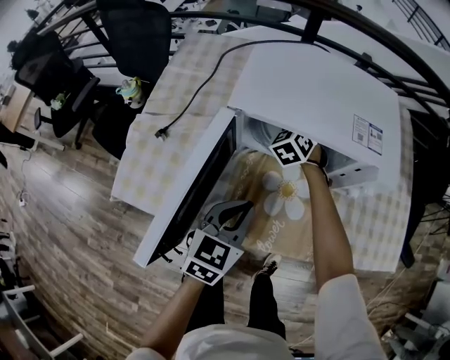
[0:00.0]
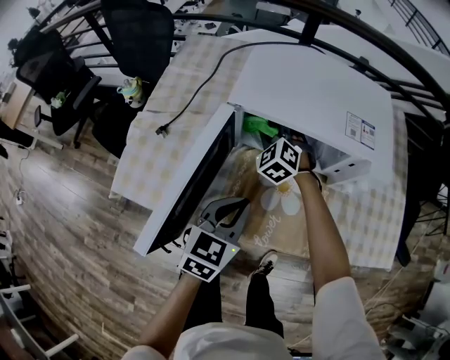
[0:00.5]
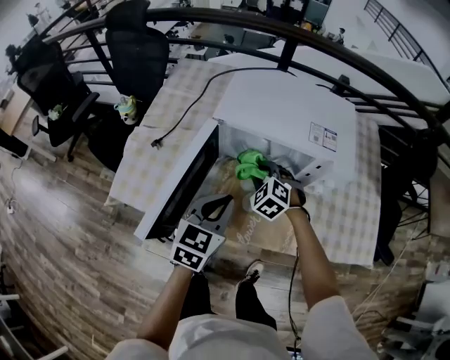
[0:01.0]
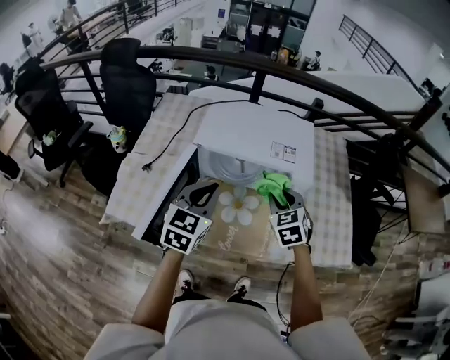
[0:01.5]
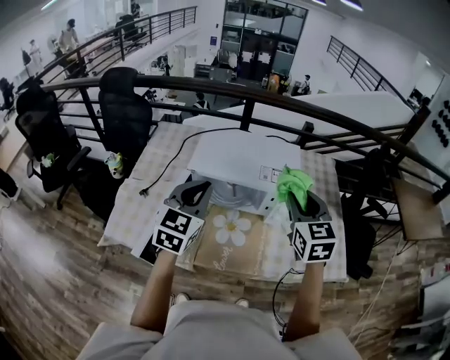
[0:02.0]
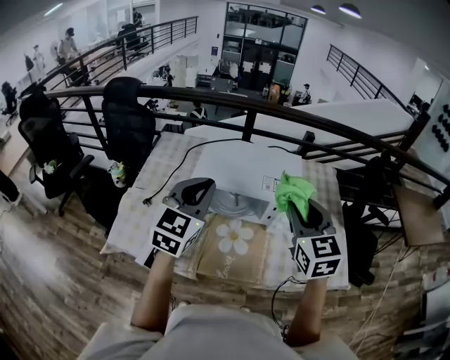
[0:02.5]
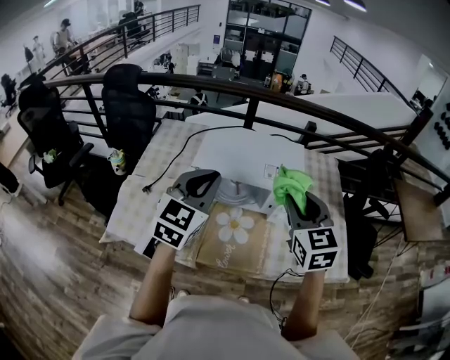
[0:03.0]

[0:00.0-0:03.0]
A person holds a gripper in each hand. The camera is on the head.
0:00.0 to 0:01.5: The right gripper shifts about 35 cm backward, upward and to the right; the left gripper is displaced upward by about 20 cm.
0:01.5 to 0:03.0: The grippers both shift upward by roughly 15 cm. The right gripper rotates about 20 degrees.

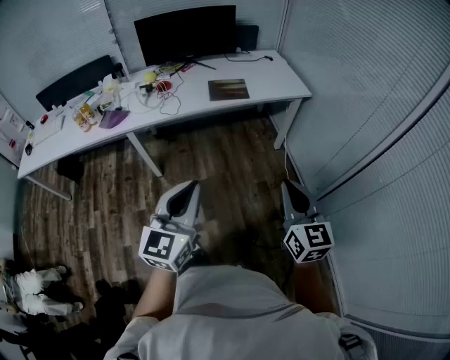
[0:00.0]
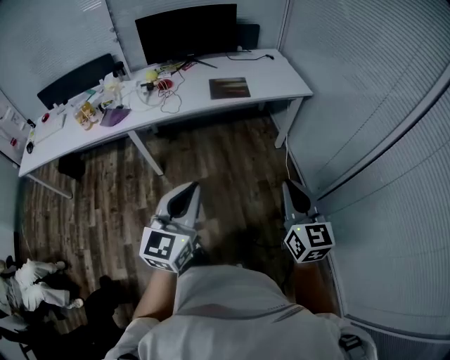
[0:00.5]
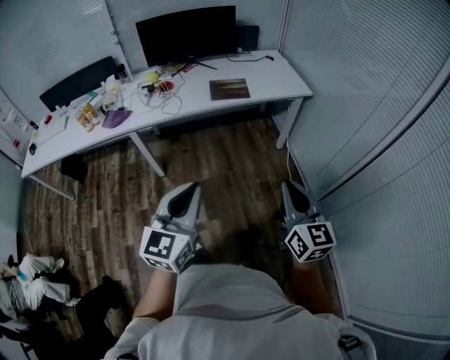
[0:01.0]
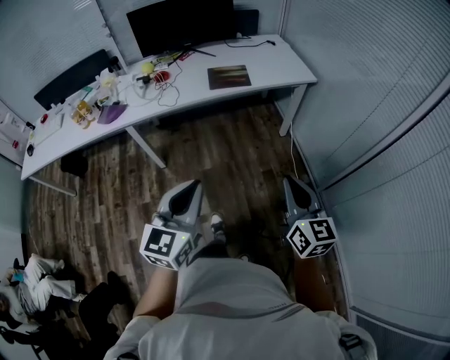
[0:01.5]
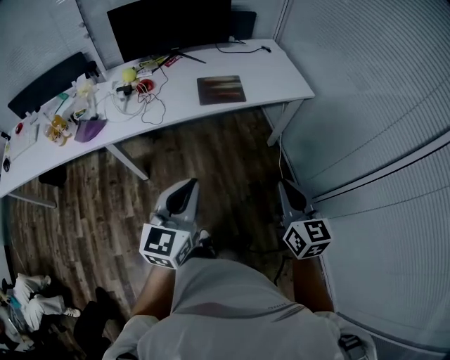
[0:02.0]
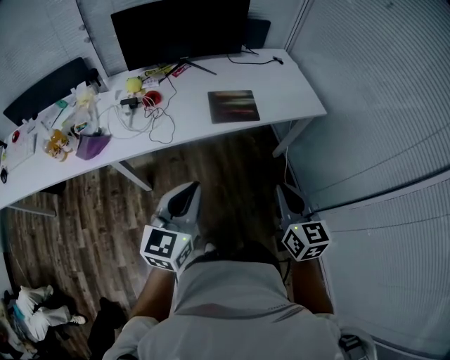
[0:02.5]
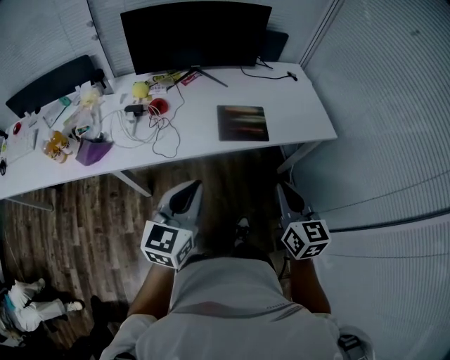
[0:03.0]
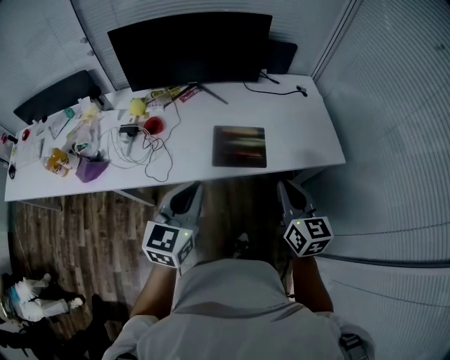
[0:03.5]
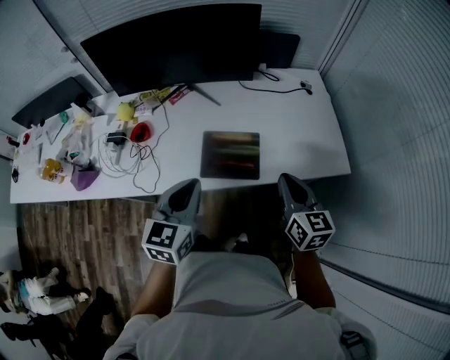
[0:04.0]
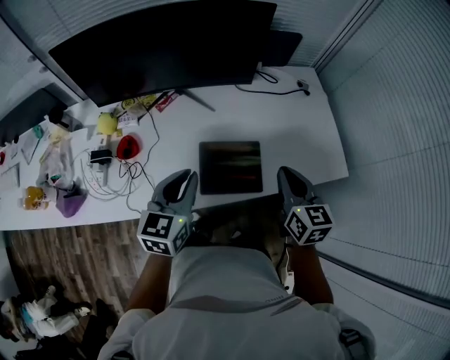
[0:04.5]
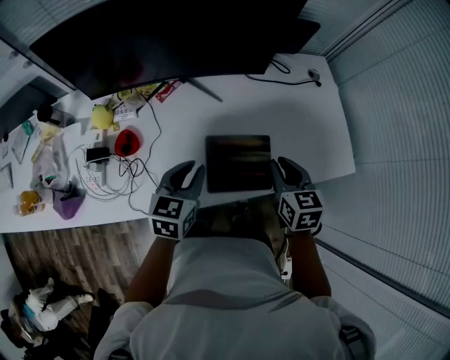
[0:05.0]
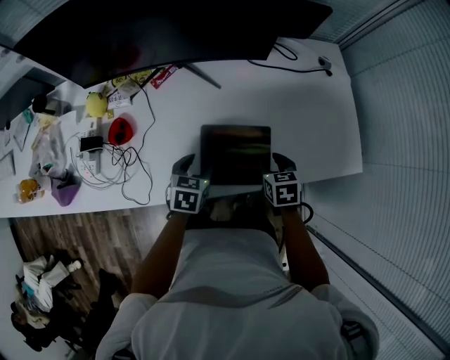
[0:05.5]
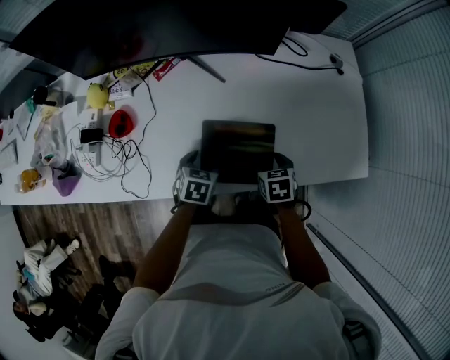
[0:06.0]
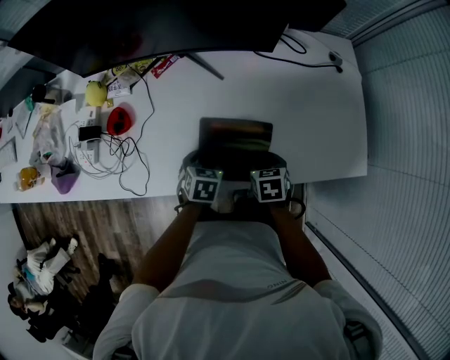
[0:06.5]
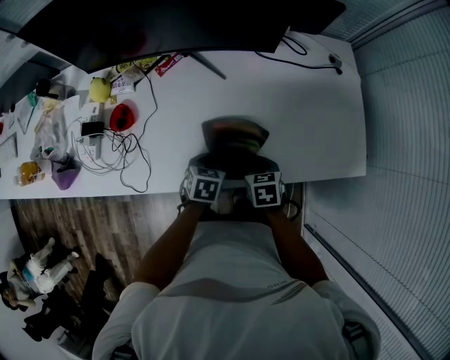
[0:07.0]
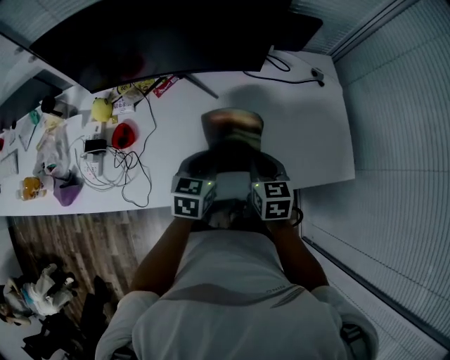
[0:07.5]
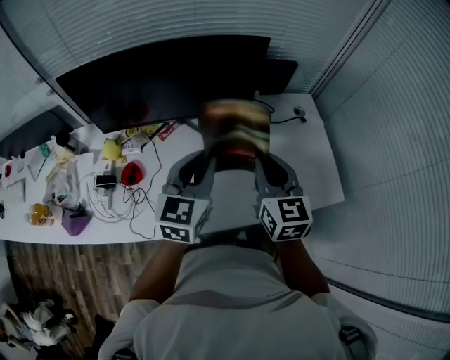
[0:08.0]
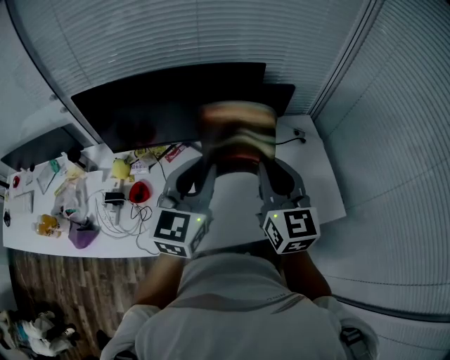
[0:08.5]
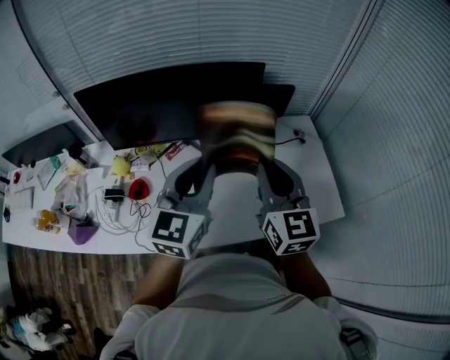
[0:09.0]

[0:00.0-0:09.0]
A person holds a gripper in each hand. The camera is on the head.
0:00.0 to 0:02.0: The two grippers go some 20 cm forward.
0:02.0 to 0:04.5: Both grippers are carried forward, some 60 cm.
0:04.5 to 0:07.0: Both grippers travel together downward, about 25 cm. The left gripper tips its fingers downward by about 40 degrees, and opens, then closes again. Meanwhile the right gripper angles its fingers downward, by approximately 40 degrees, and opens, then closes once more.
0:07.0 to 0:09.0: The two grippers go approximately 40 cm upward. The left gripper tips its fingers upward by about 60 degrees, while the right gripper points its fingers approximately 60 degrees further upward.

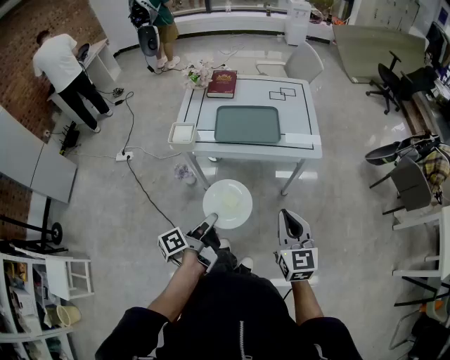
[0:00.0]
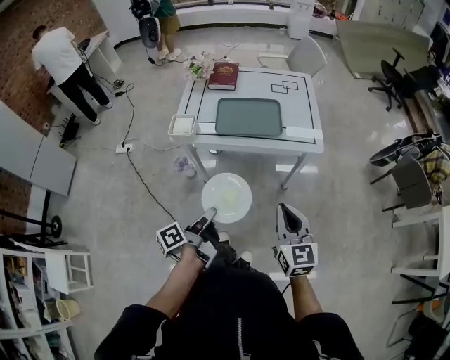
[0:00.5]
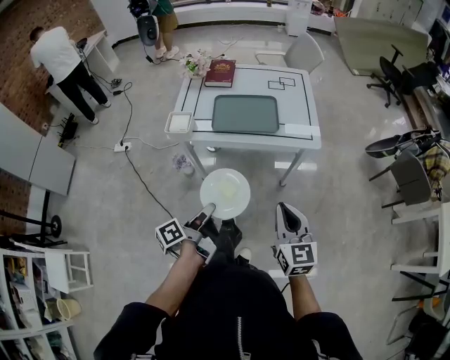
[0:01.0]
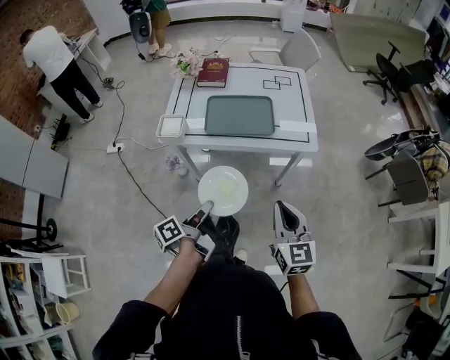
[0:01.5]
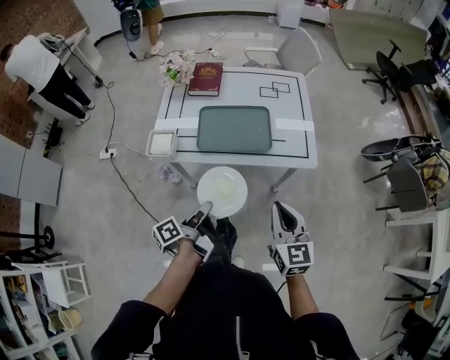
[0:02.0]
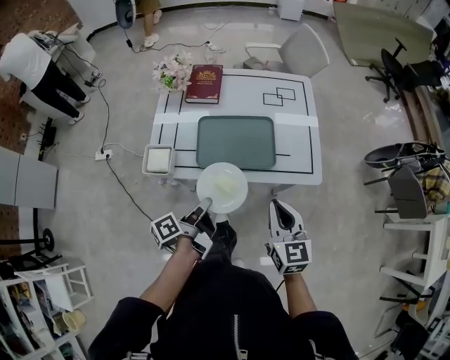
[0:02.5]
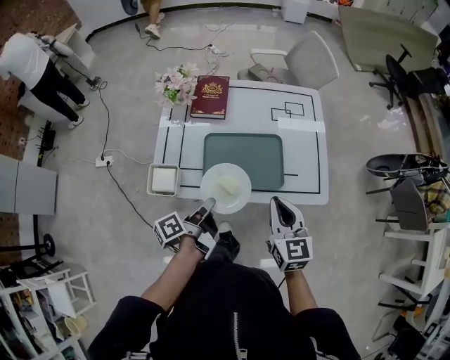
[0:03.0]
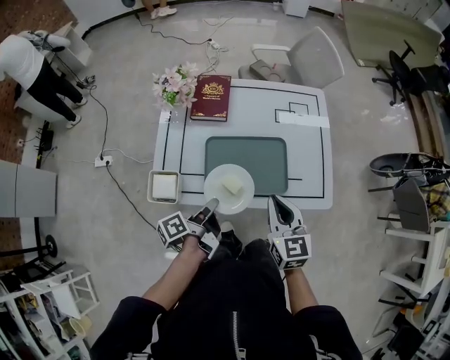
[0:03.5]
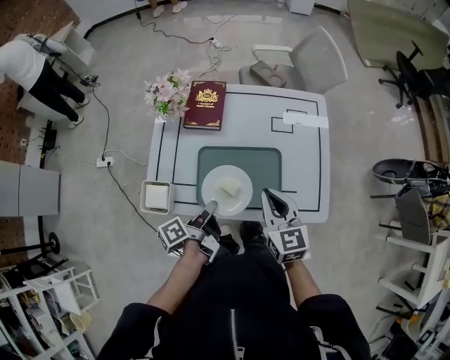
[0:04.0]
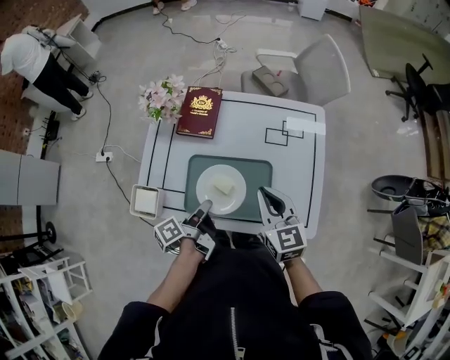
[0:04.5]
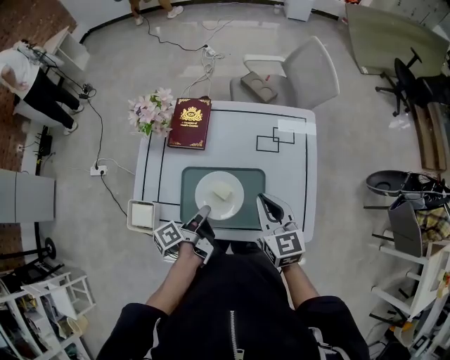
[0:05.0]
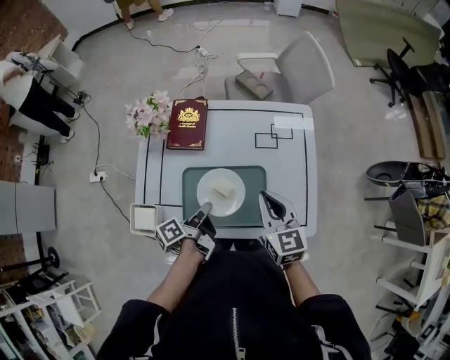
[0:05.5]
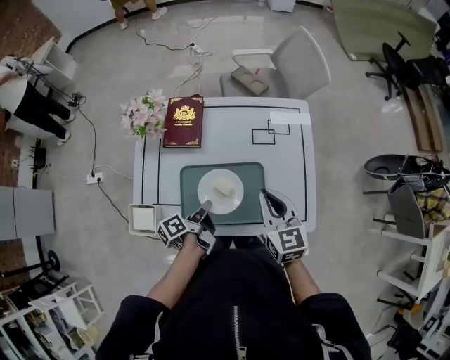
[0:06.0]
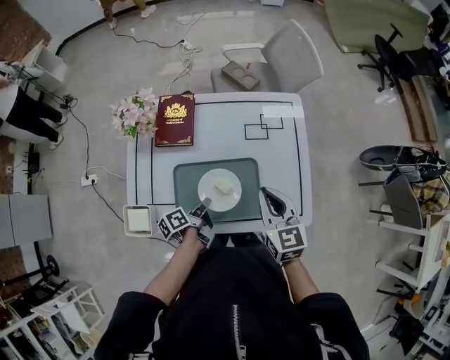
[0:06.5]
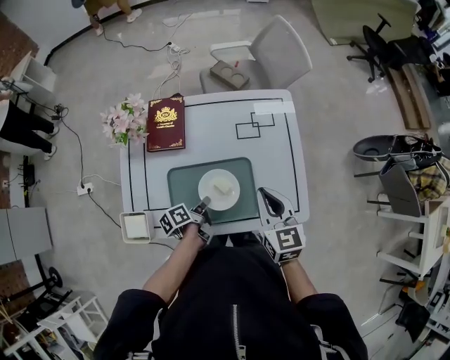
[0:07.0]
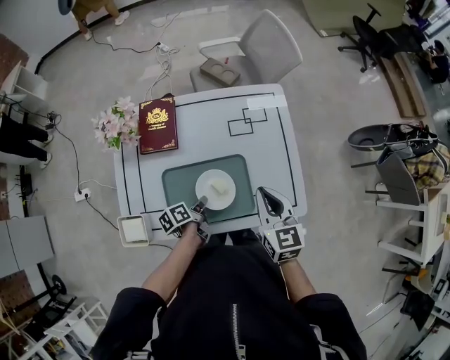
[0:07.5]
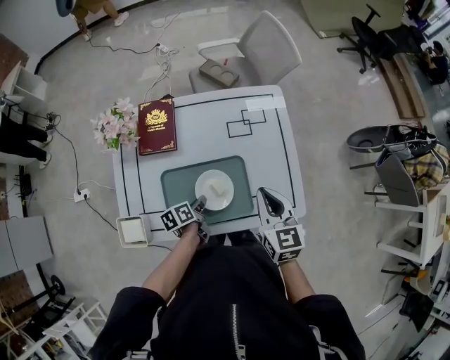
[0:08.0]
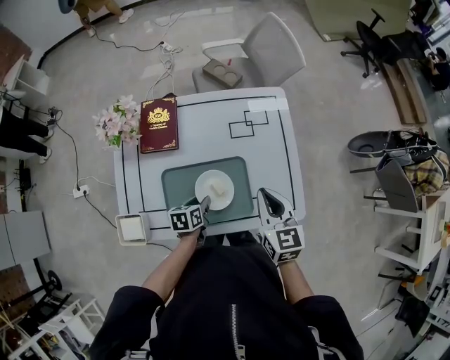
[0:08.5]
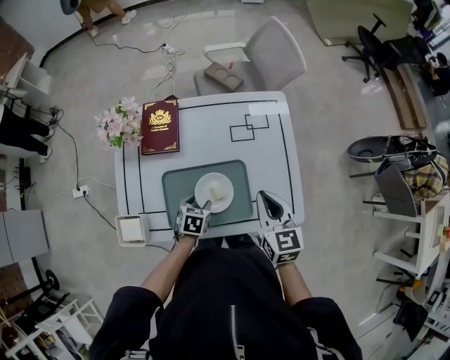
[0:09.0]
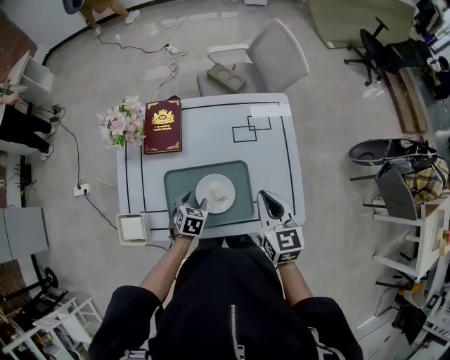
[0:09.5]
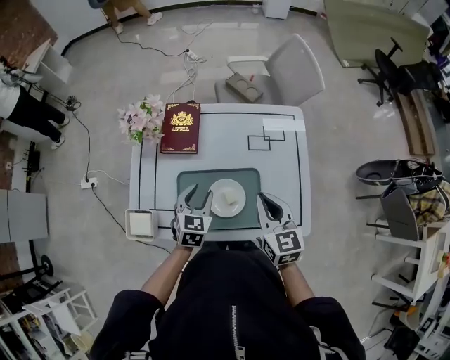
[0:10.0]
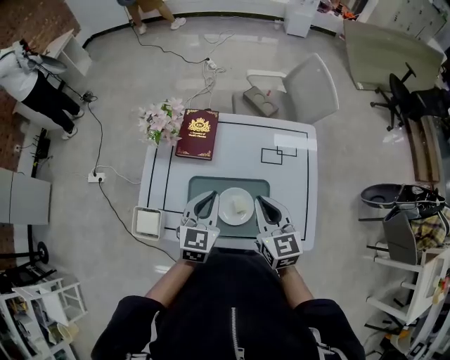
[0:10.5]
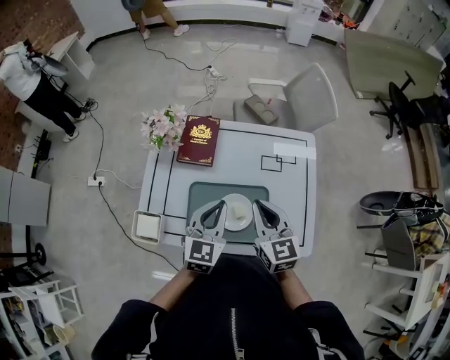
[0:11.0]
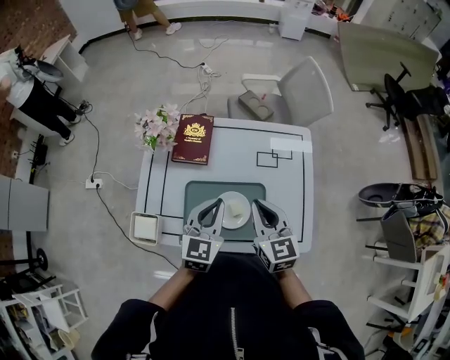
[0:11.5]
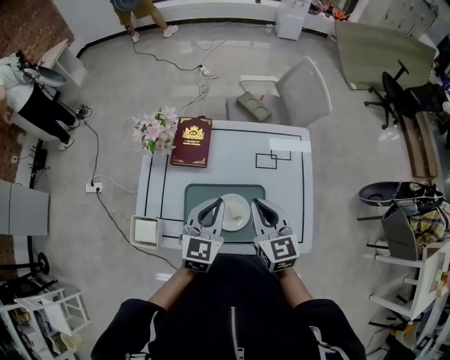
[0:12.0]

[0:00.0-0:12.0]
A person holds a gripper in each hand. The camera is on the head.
0:00.0 to 0:02.0: The right gripper ends up about 15 cm from where it was.
0:02.0 to 0:04.0: The right gripper changes place by about 35 cm.
0:04.0 to 0:06.0: The right gripper ends up about 10 cm from where it was.
0:06.0 to 0:08.0: The right gripper shifts by about 5 cm.
0:08.0 to 0:10.0: The right gripper changes place by approximately 5 cm.
0:10.0 to 0:12.0: The right gripper moves roughly 5 cm.

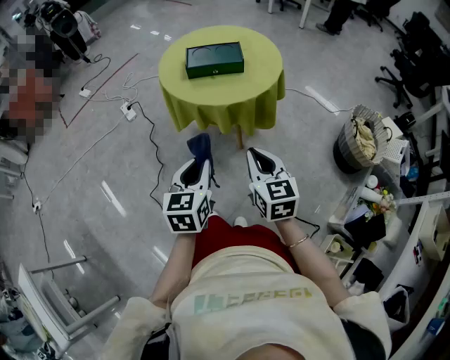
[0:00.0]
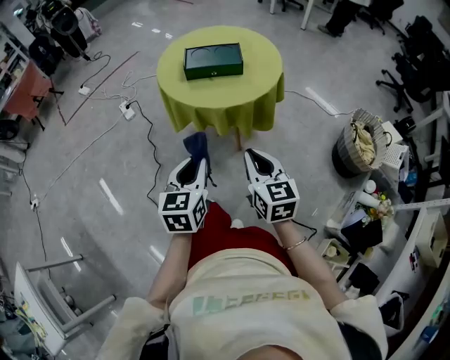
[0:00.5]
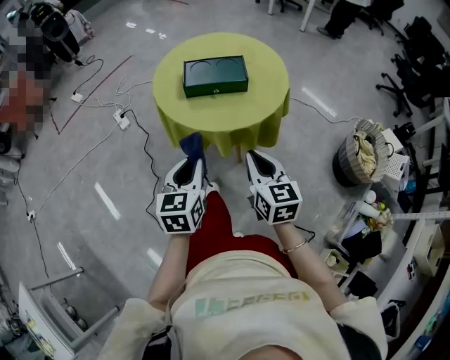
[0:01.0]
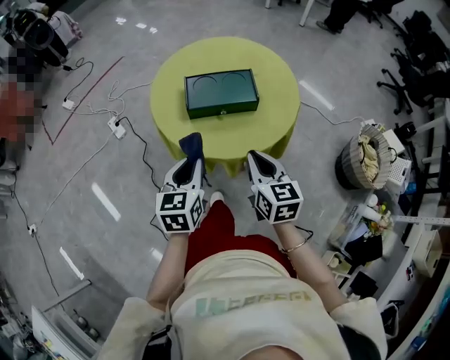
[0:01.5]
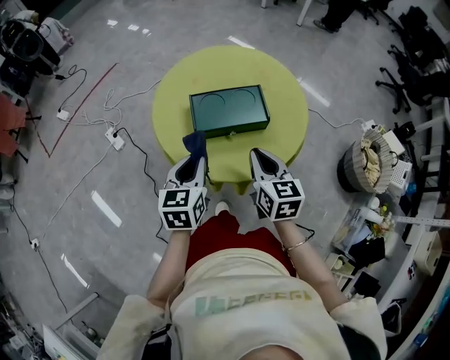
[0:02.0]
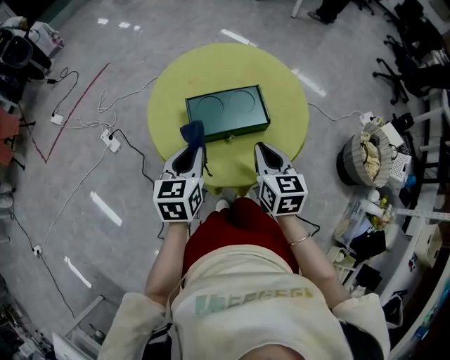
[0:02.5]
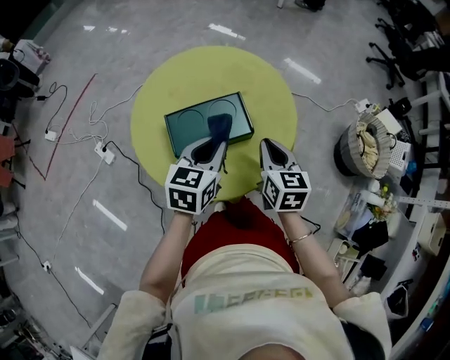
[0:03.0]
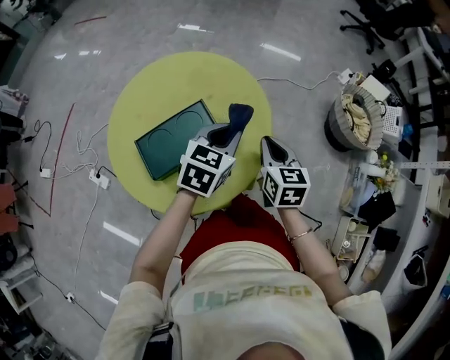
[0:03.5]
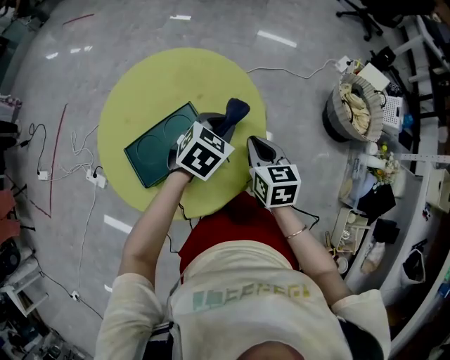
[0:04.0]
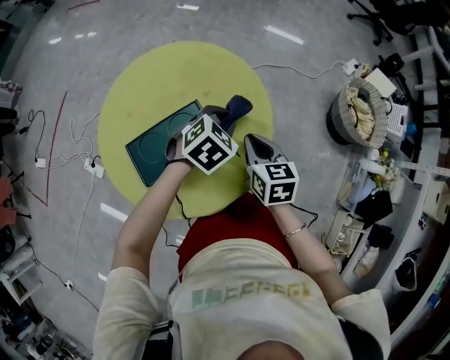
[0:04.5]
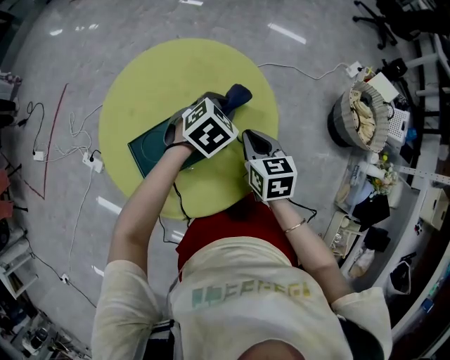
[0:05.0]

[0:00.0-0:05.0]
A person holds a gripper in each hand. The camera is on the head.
0:00.0 to 0:02.5: The pair of grippers is taken forward, some 50 cm.
0:02.5 to 0:05.0: The right gripper changes place by about 20 cm; the left gripper moves roughly 35 cm, and rotates some 60 degrees.
